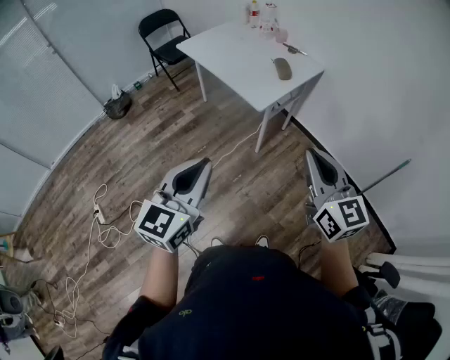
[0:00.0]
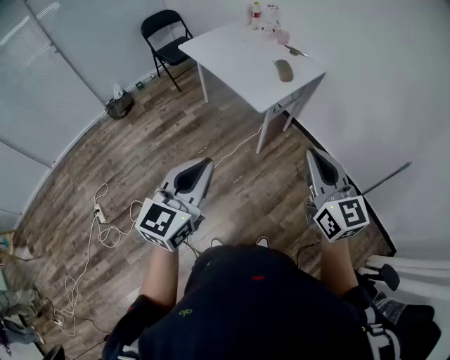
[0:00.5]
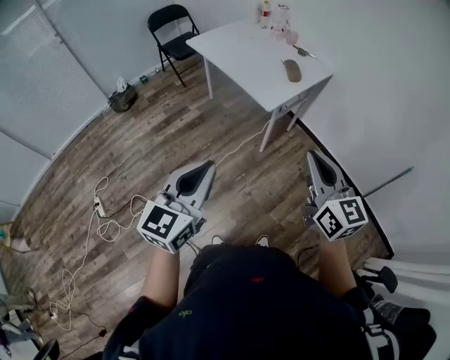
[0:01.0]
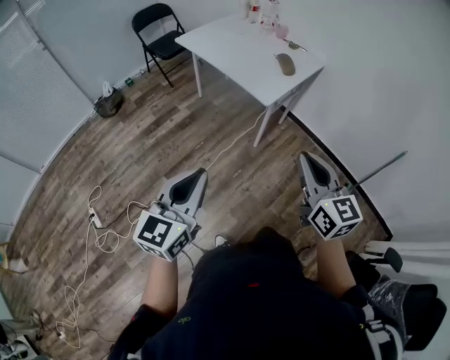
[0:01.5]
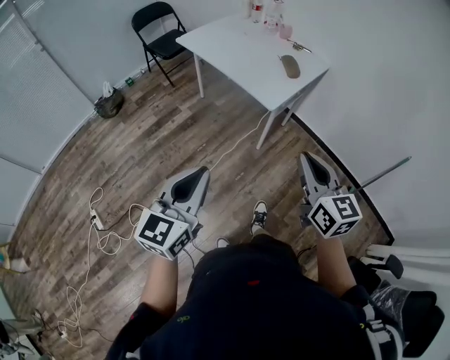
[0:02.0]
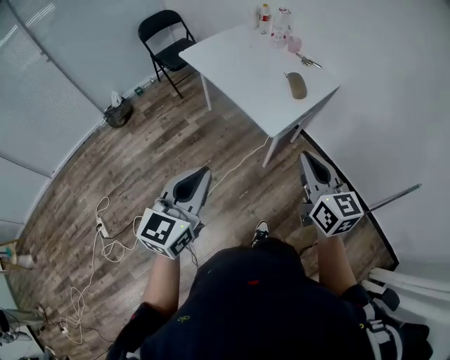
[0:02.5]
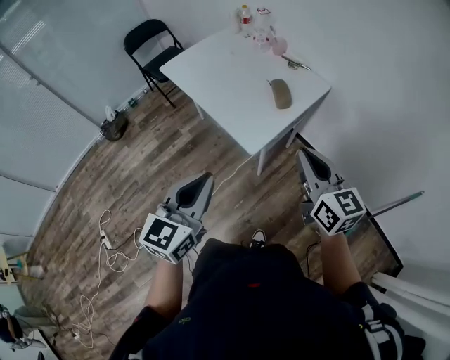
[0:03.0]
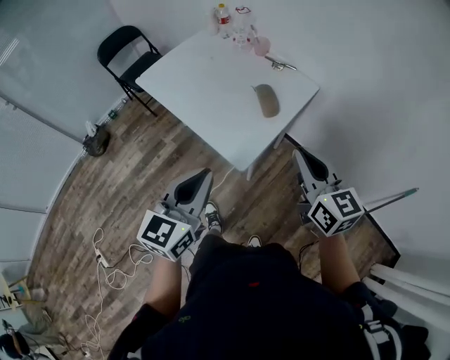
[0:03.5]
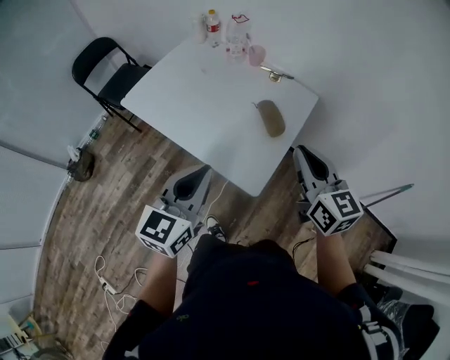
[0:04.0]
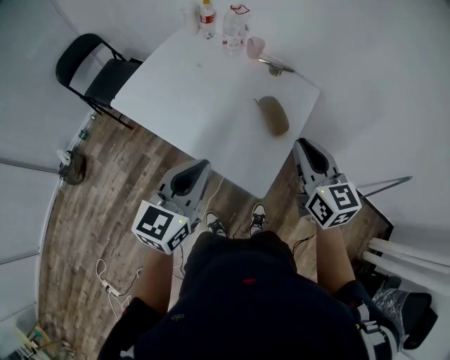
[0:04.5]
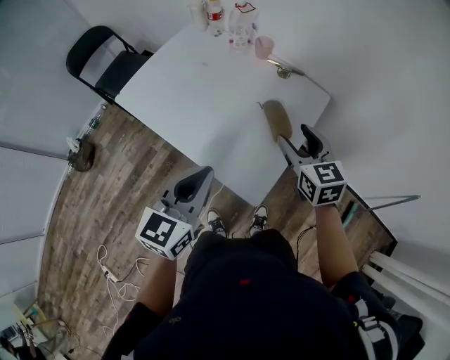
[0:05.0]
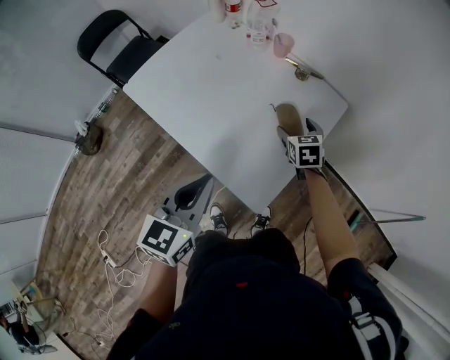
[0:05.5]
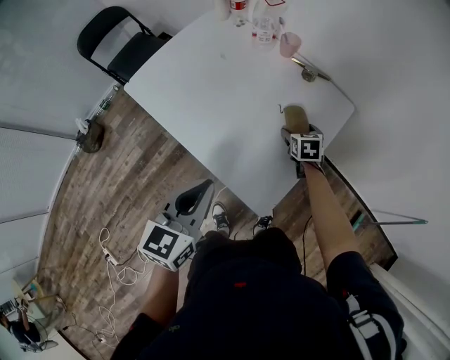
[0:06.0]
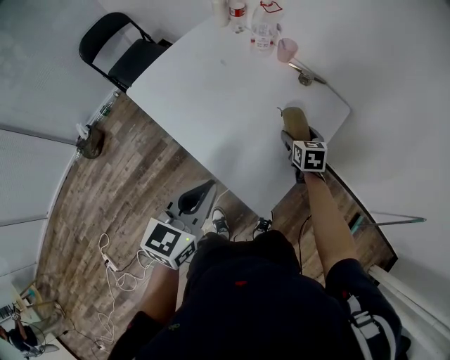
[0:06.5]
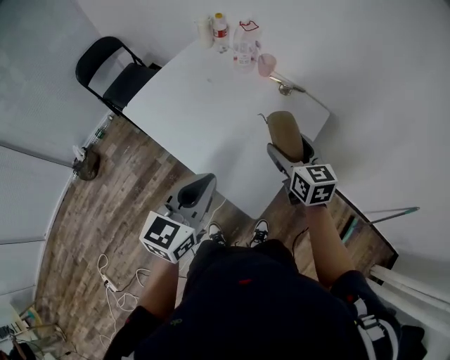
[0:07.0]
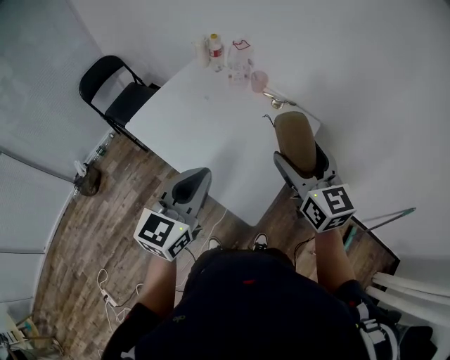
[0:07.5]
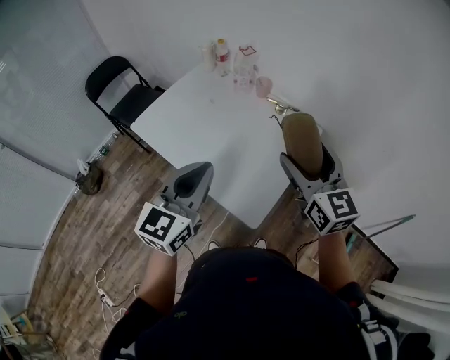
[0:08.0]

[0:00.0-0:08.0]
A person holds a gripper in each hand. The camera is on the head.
0:00.0 to 0:02.0: The left gripper heads to the left, covering roughly 10 cm. The right gripper is displaced to the left and downward by approximately 10 cm.
0:02.0 to 0:04.0: Both grippers are carried forward, about 50 cm.
0:04.0 to 0:06.0: The right gripper moves downward and forward, about 40 cm, angles its fingers downward, by approximately 40 degrees, and opens up; the left gripper goes some 15 cm forward and downward.
0:06.0 to 0:08.0: The right gripper moves upward and backward, approximately 40 cm, and angles its fingers upward, by approximately 50 degrees, while the left gripper heads upward, covering approximately 15 cm, and rotates approximately 20 degrees.

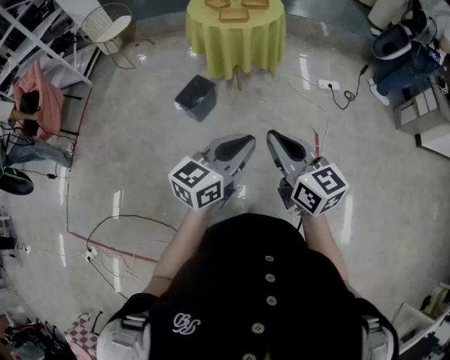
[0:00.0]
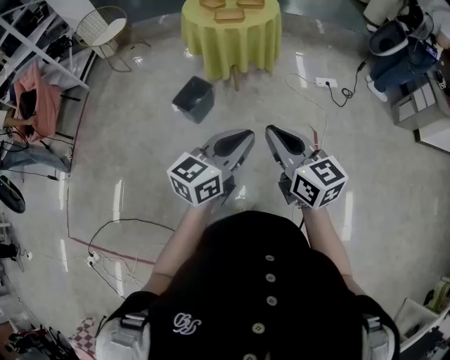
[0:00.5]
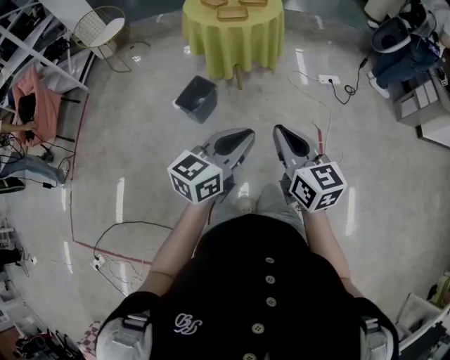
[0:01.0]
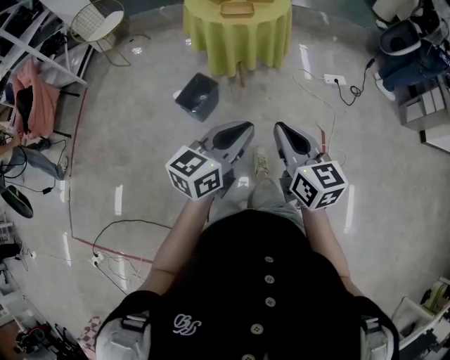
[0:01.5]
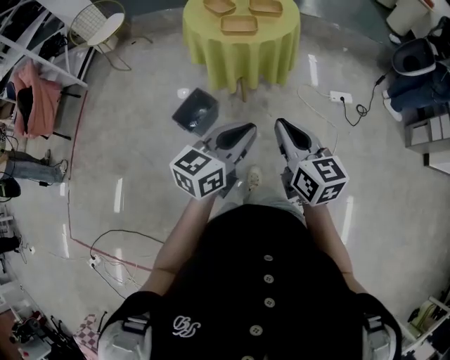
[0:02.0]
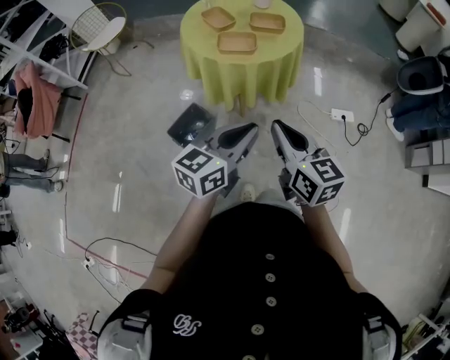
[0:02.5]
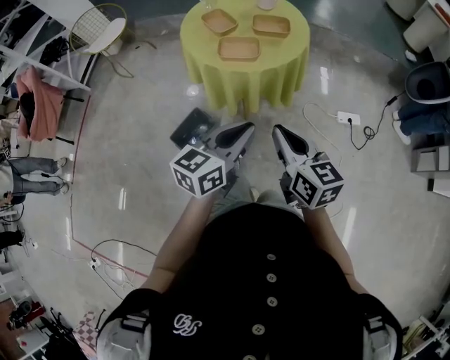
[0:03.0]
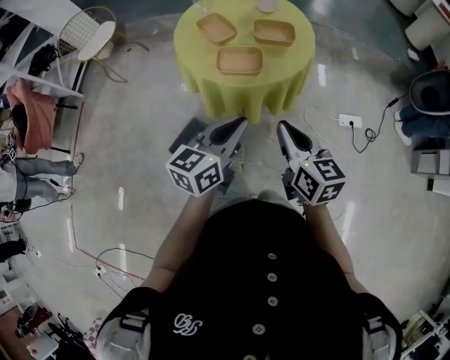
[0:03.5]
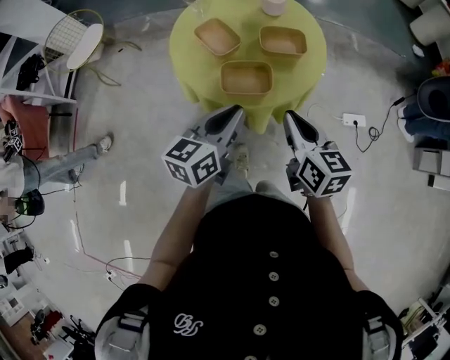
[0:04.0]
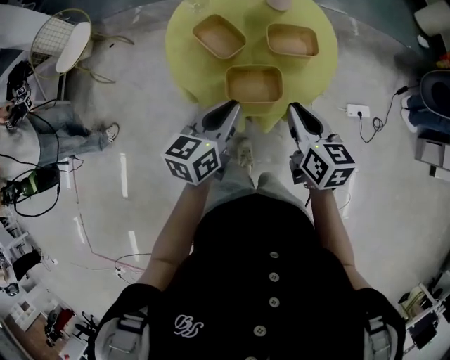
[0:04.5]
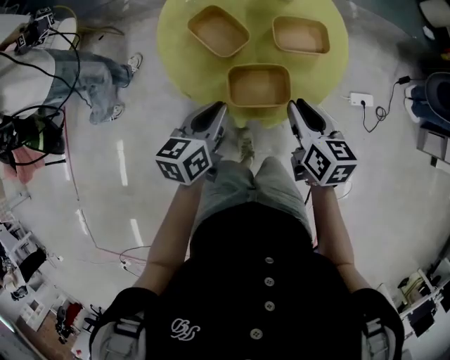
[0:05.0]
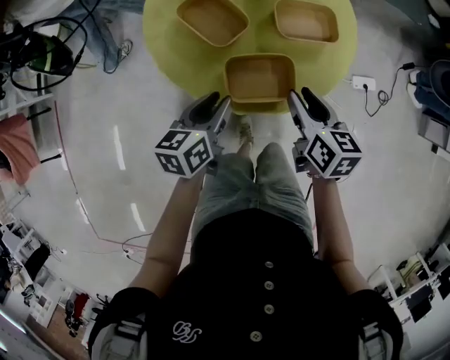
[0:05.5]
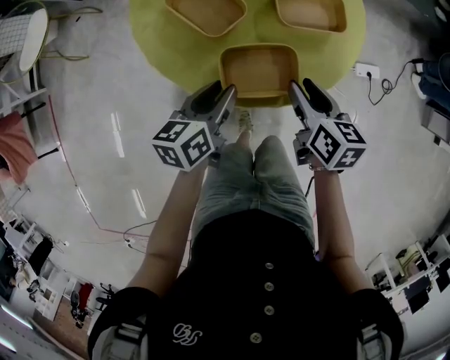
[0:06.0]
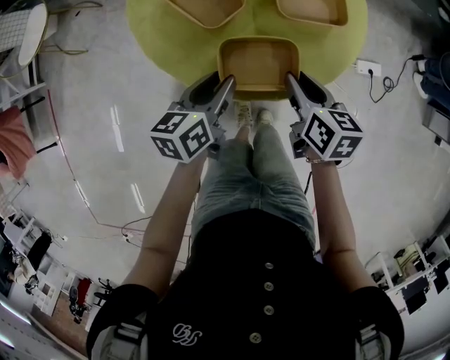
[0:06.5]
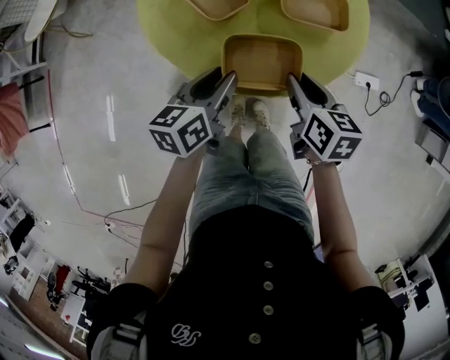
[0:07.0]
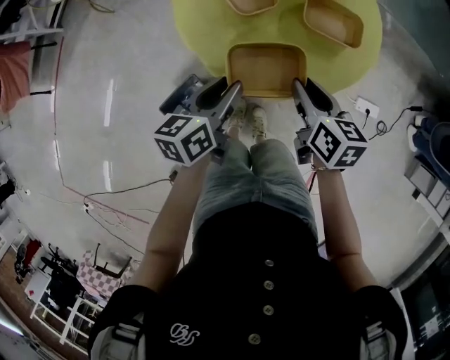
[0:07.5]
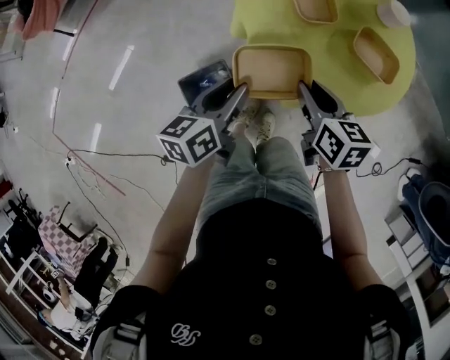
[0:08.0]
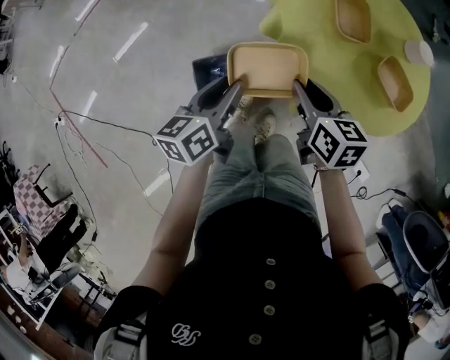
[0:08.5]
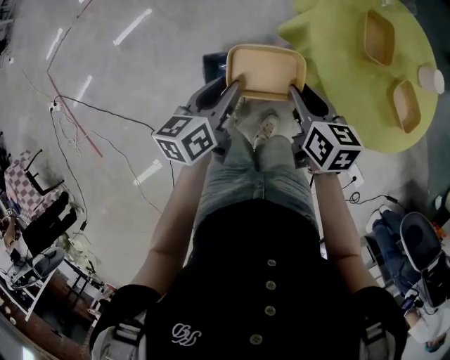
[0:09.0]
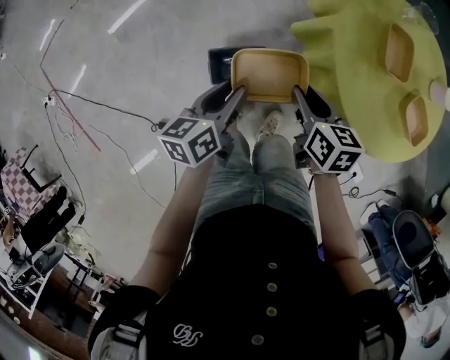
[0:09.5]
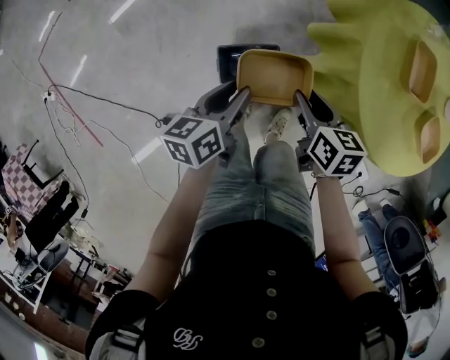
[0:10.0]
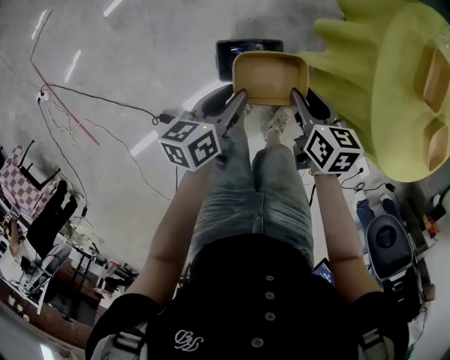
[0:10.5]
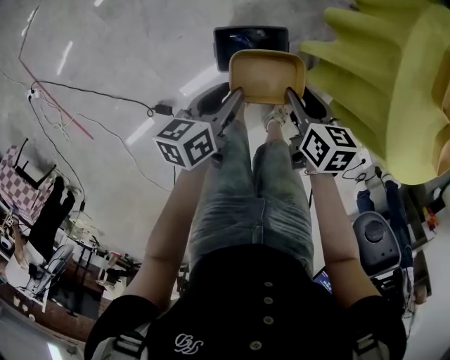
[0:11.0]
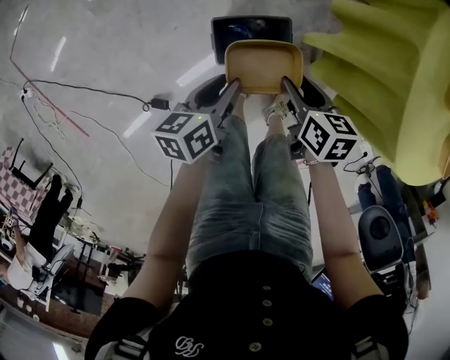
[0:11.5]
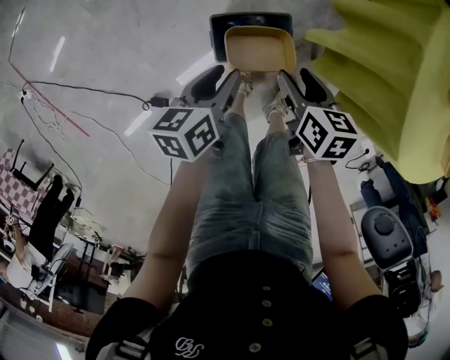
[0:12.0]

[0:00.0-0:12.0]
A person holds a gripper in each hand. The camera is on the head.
0:00.0 to 0:02.0: Both grippers travel together forward, about 25 cm.
0:02.0 to 0:04.0: Both grippers move forward, some 35 cm.
0:04.0 to 0:06.0: The left gripper shifts approximately 20 cm downward, forward and to the left, changes its angle by roughly 20 degrees, and opens up, while the right gripper shifts some 20 cm downward and forward, swivels about 20 degrees, and opens.
0:06.0 to 0:08.0: The right gripper shifts by roughly 10 cm, and rotates roughly 40 degrees; the left gripper changes place by roughly 15 cm, and rotates roughly 40 degrees.
0:08.0 to 0:10.0: The two grippers go some 20 cm to the left and downward. The right gripper rotates roughly 20 degrees. The left gripper swivels some 20 degrees.
0:10.0 to 0:12.0: The grippers both shift downward by about 15 cm. The right gripper opens.

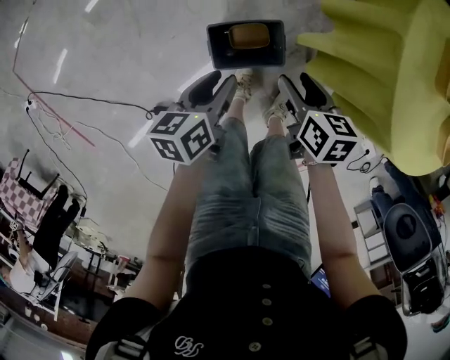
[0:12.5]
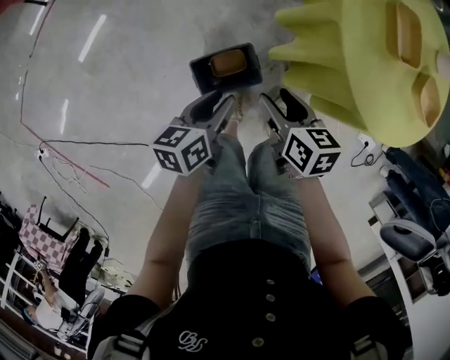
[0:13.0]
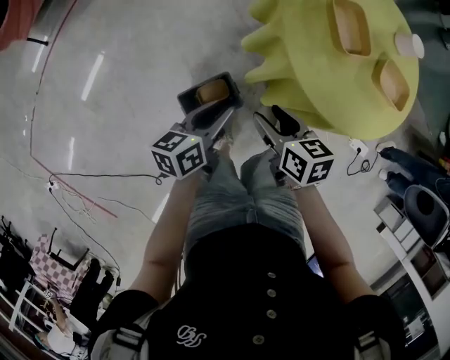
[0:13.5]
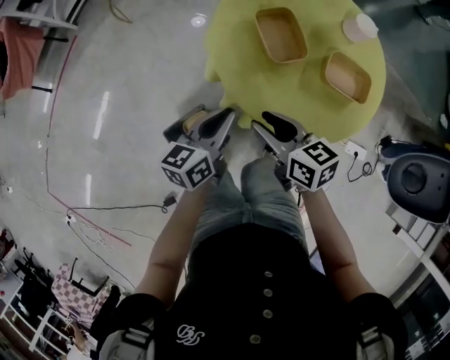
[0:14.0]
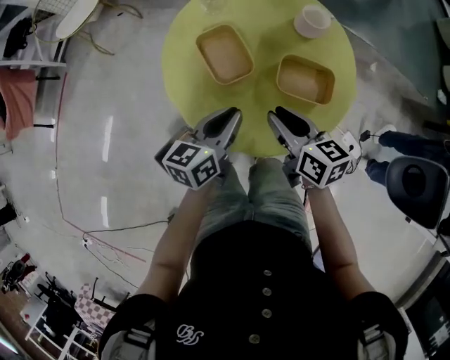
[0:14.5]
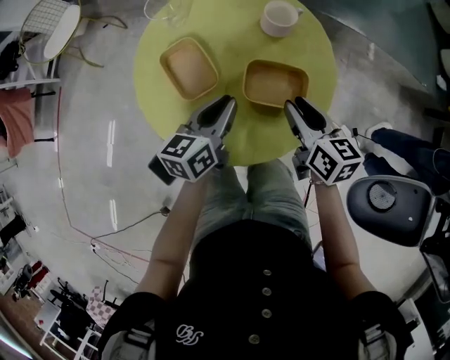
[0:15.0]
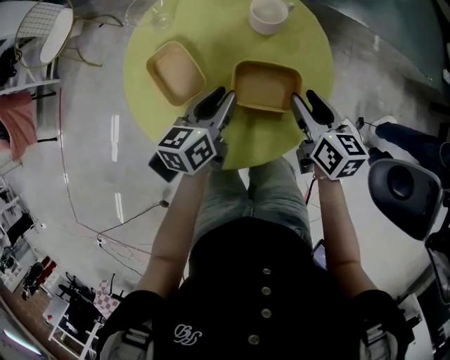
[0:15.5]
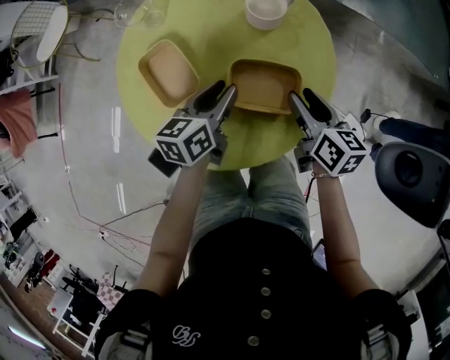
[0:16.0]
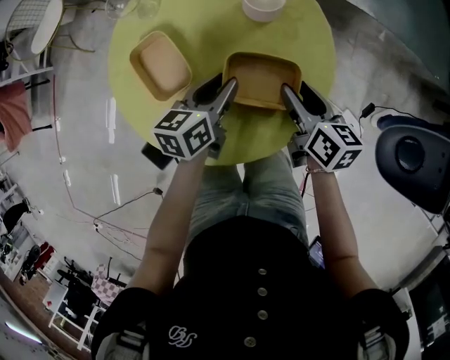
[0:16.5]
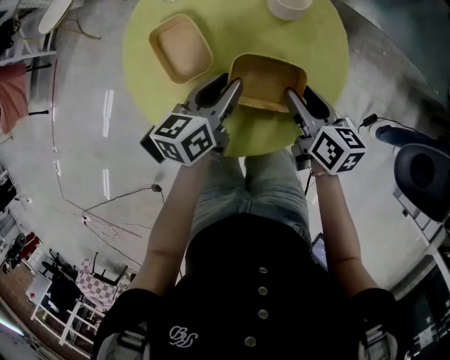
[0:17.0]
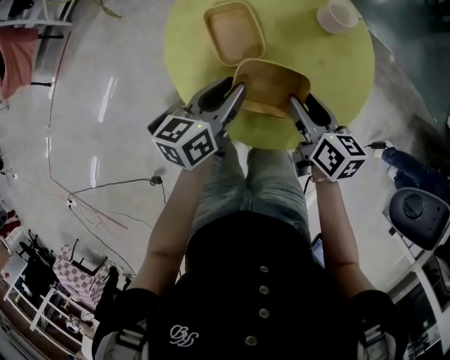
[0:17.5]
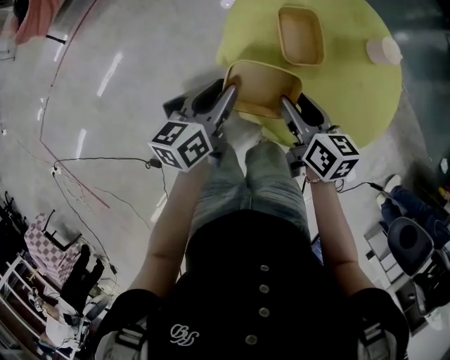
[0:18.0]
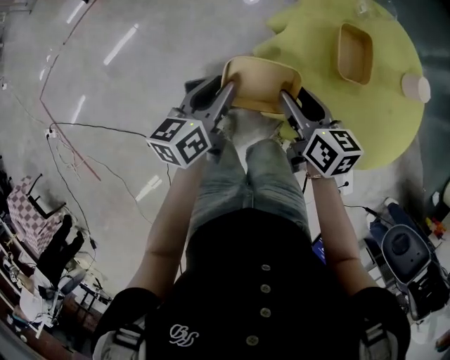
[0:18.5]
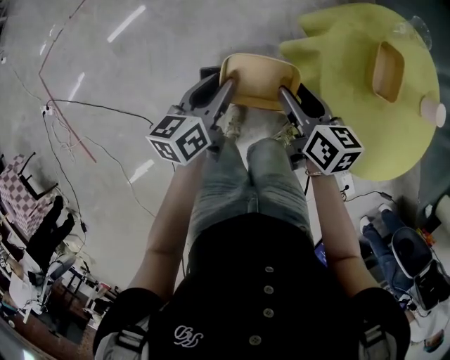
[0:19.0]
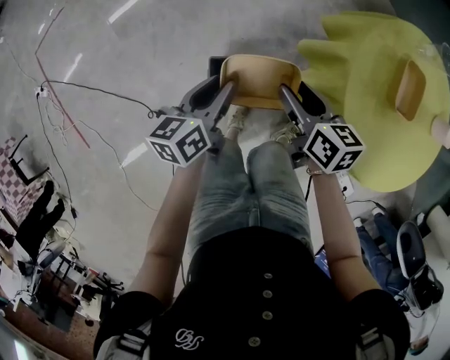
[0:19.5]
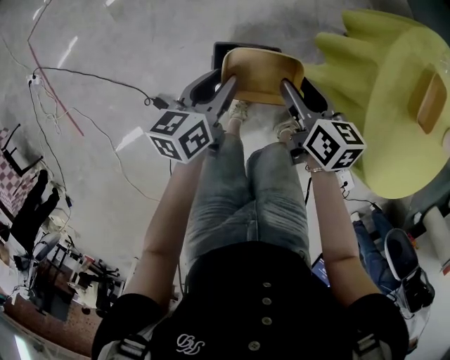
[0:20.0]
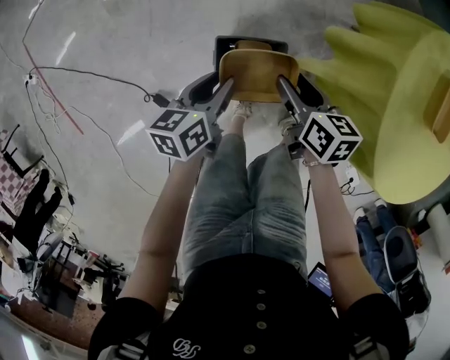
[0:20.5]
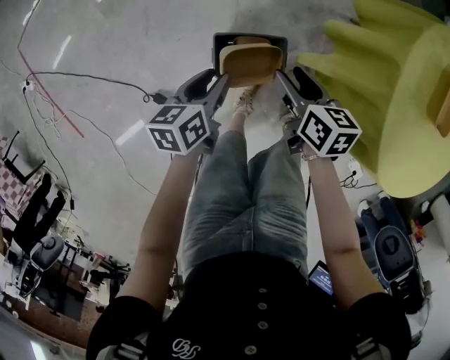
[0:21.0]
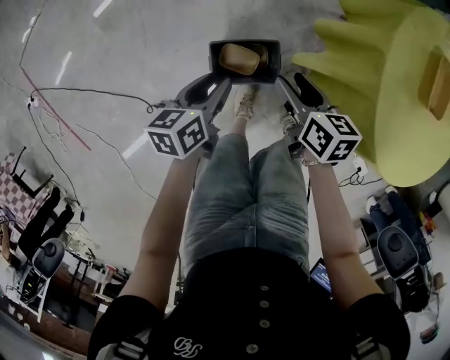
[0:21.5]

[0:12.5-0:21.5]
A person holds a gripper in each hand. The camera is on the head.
0:12.5 to 0:14.5: The right gripper moves roughly 40 cm, changes its angle by roughly 30 degrees, and closes. Meanwhile the left gripper moves about 50 cm, turns by approximately 50 degrees, and closes its fingers.
0:14.5 to 0:17.0: The left gripper is displaced forward and to the right by roughly 10 cm. Meanwhile the right gripper travels to the right and forward by some 15 cm, and opens.
0:17.0 to 0:19.5: The pair of grippers is taken about 50 cm. The right gripper turns by some 40 degrees. The left gripper changes its angle by approximately 40 degrees.
0:19.5 to 0:21.5: The two grippers go about 10 cm downward.
